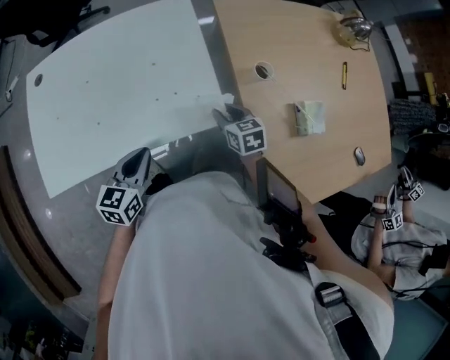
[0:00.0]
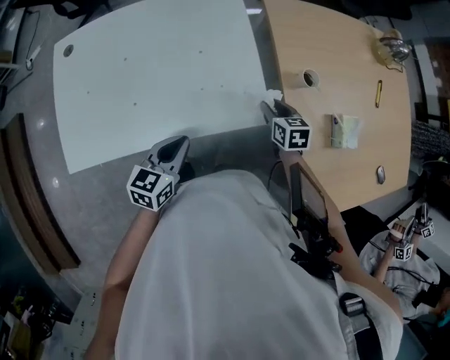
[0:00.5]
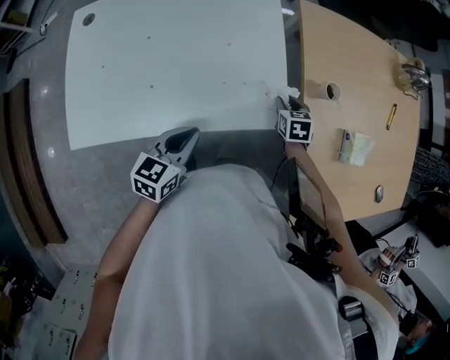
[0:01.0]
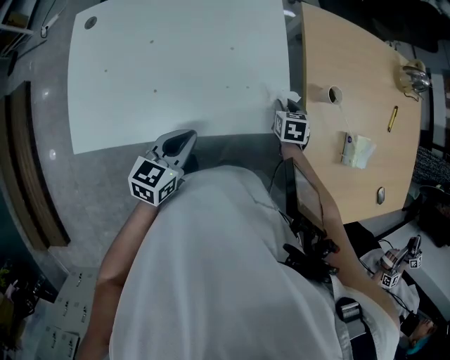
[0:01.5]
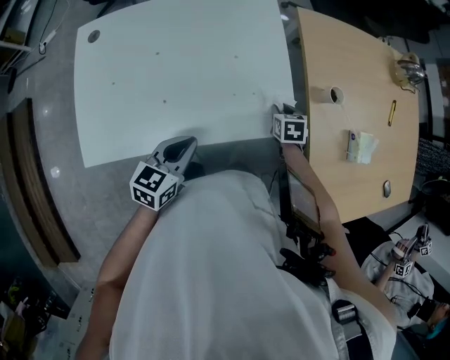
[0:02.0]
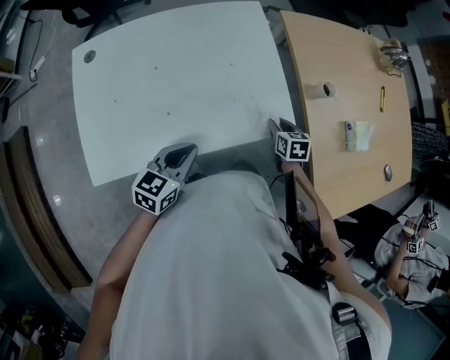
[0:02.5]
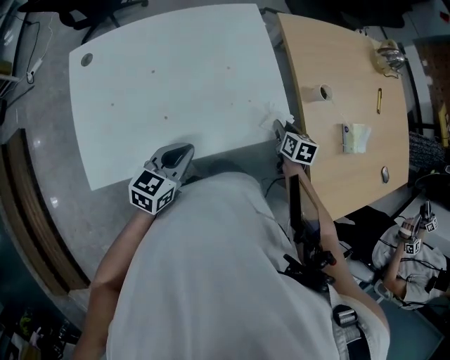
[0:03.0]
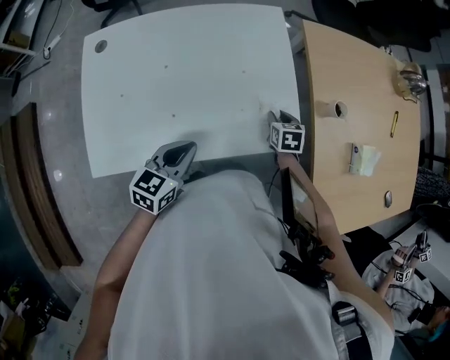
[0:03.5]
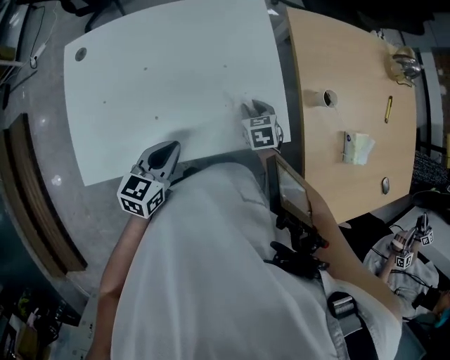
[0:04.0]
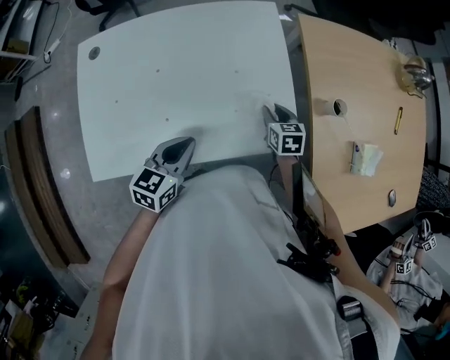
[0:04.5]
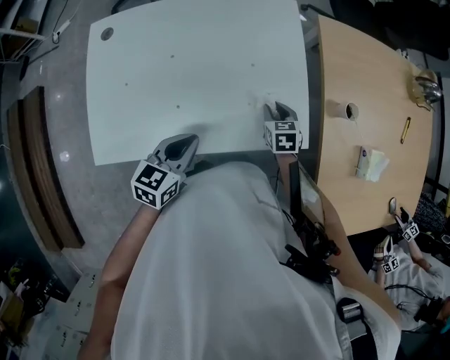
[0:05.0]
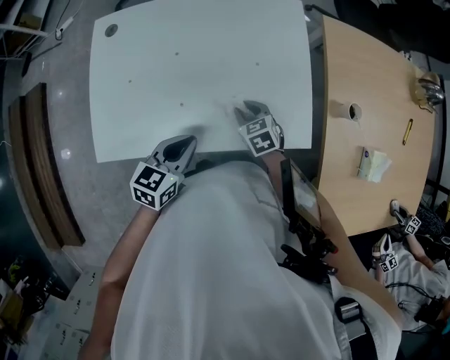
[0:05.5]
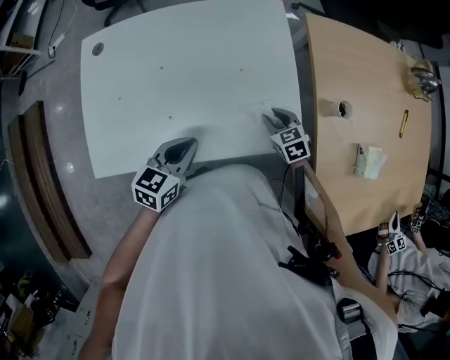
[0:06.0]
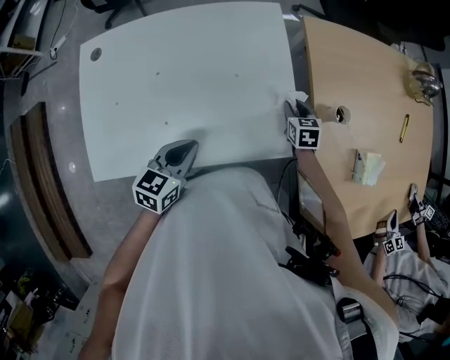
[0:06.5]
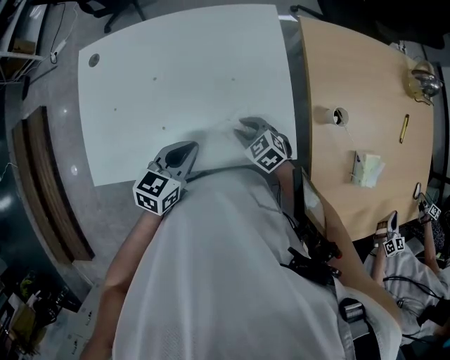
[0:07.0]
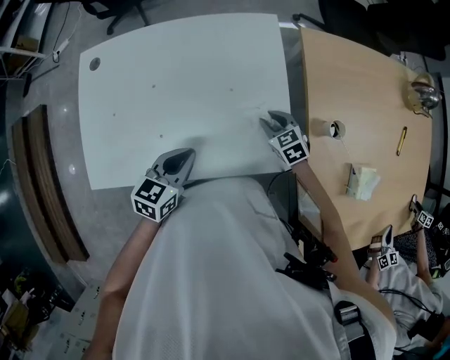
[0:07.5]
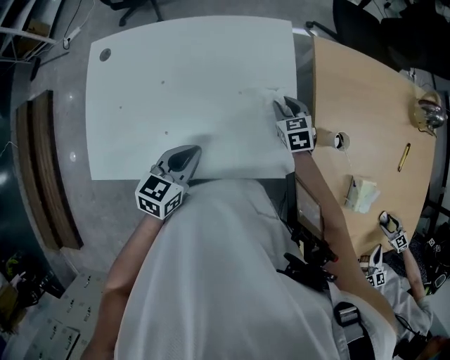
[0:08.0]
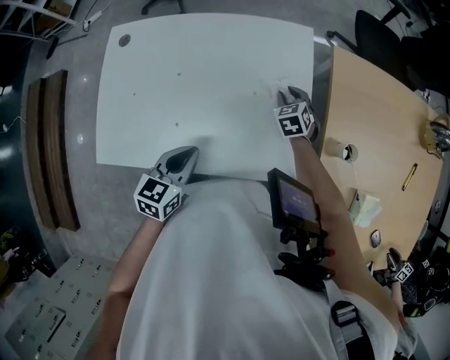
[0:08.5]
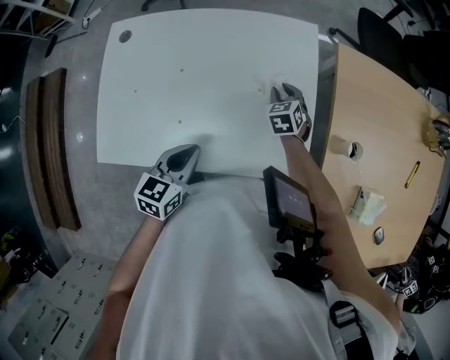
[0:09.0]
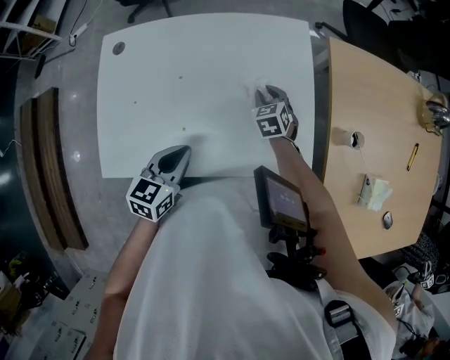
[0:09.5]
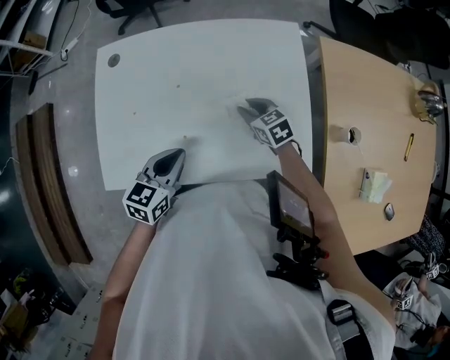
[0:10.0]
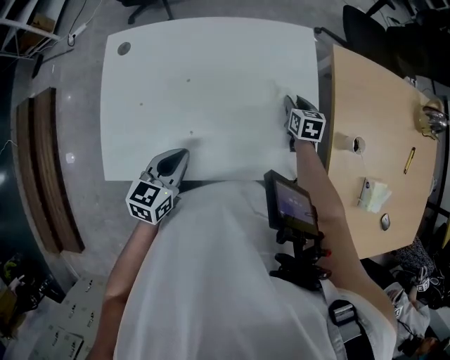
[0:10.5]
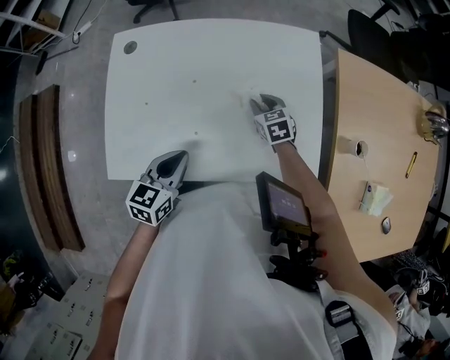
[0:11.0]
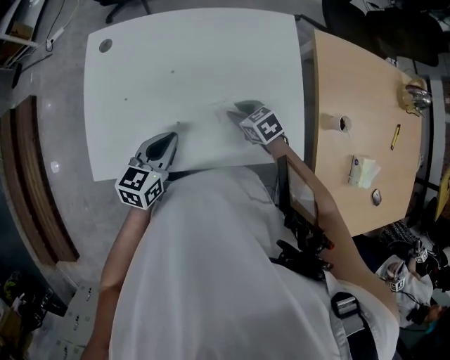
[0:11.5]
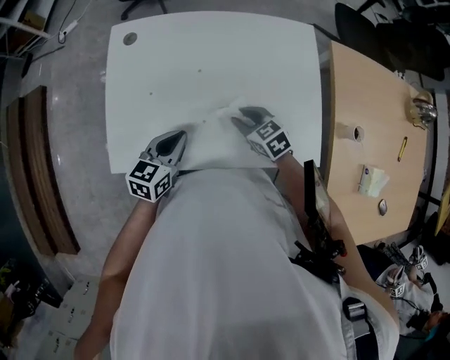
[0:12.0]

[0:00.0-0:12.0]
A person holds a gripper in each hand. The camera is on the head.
0:00.0 to 0:02.0: The left gripper heads to the left, covering roughly 5 cm. The right gripper heads downward, covering some 5 cm, and turns by about 20 degrees.
0:02.0 to 0:04.0: The right gripper moves to the left, about 10 cm.
0:04.0 to 0:06.0: The right gripper moves left and right over some 15 cm, changing direction 2 times.
0:06.0 to 0:08.0: The right gripper swings left and right, approximately 15 cm each way, with 2 reversals; the left gripper ends up roughly 5 cm from where it was.
0:08.0 to 0:10.0: The right gripper shifts about 15 cm to the left, and turns by approximately 20 degrees. Meanwhile the left gripper moves to the left, roughly 10 cm.
0:10.0 to 0:12.0: The right gripper moves to the left and backward, roughly 10 cm. Meanwhile the left gripper is displaced to the left by approximately 5 cm.

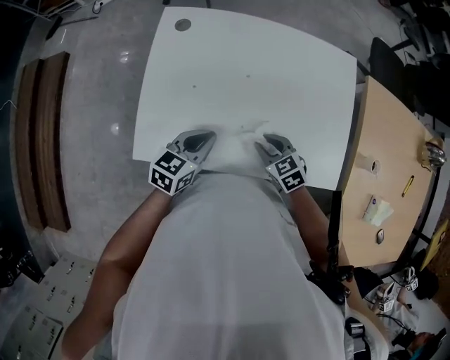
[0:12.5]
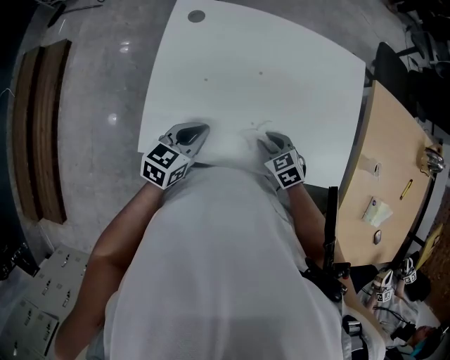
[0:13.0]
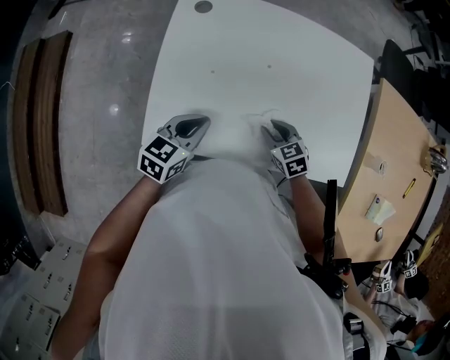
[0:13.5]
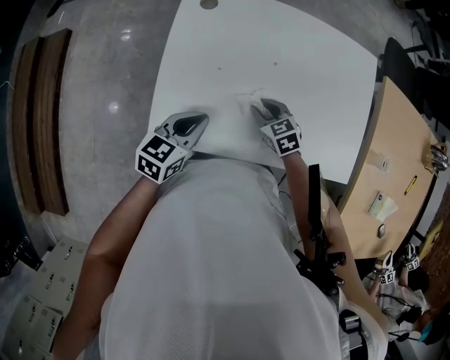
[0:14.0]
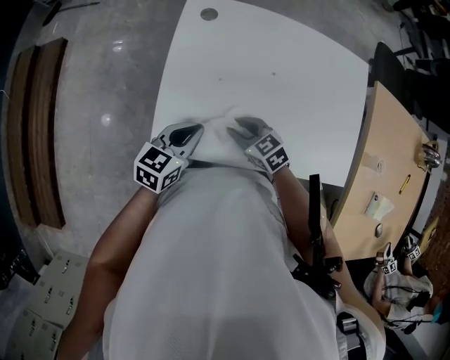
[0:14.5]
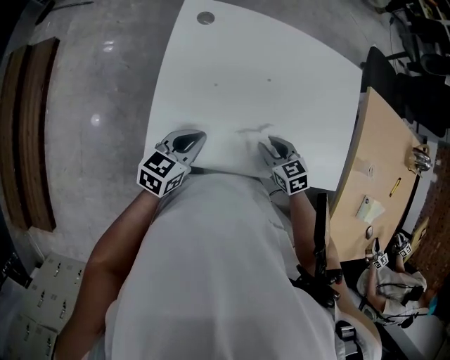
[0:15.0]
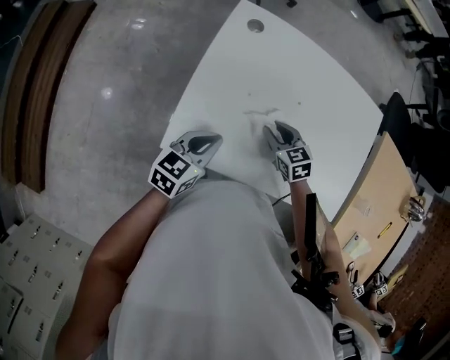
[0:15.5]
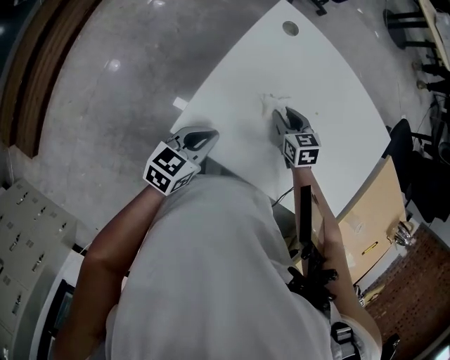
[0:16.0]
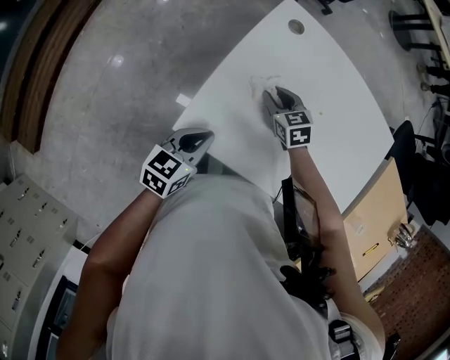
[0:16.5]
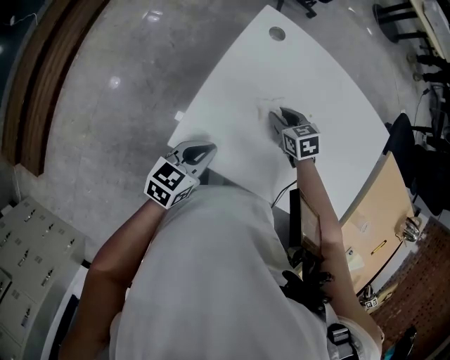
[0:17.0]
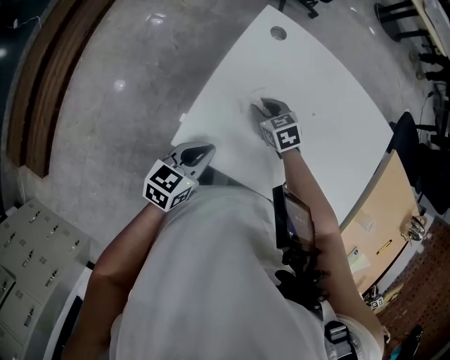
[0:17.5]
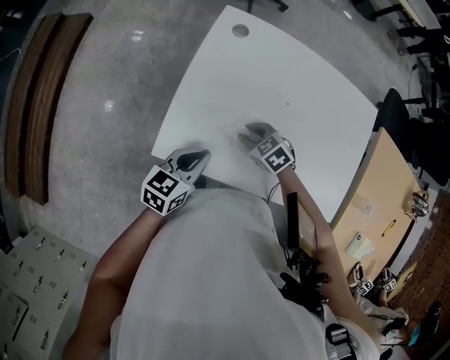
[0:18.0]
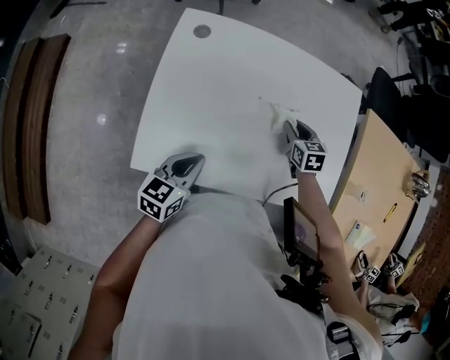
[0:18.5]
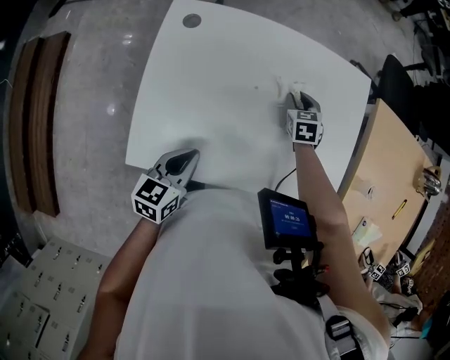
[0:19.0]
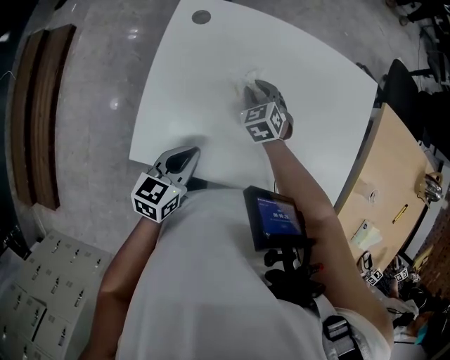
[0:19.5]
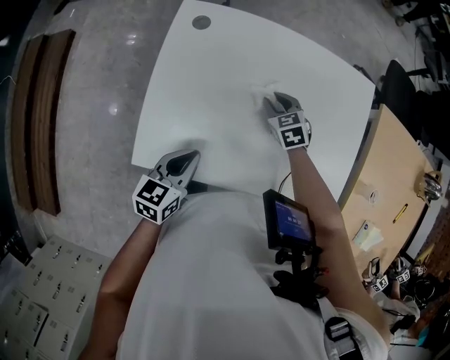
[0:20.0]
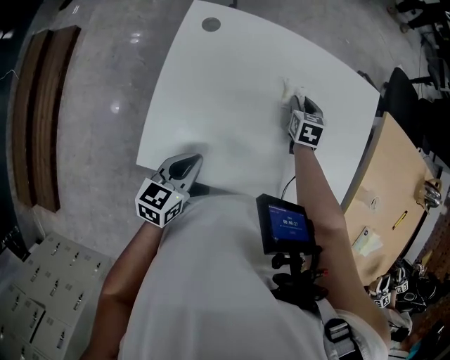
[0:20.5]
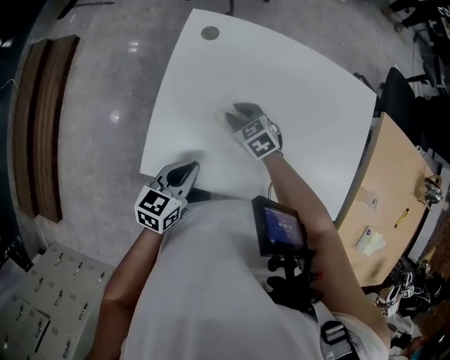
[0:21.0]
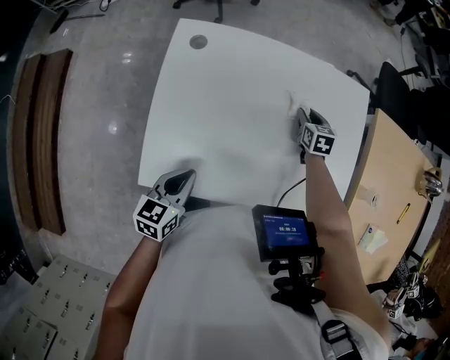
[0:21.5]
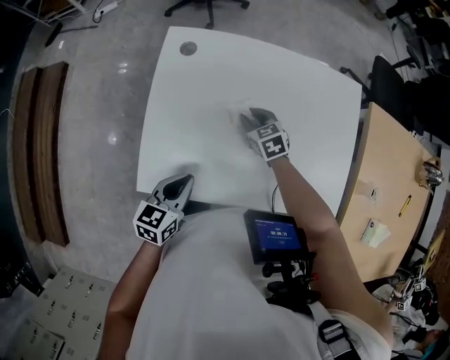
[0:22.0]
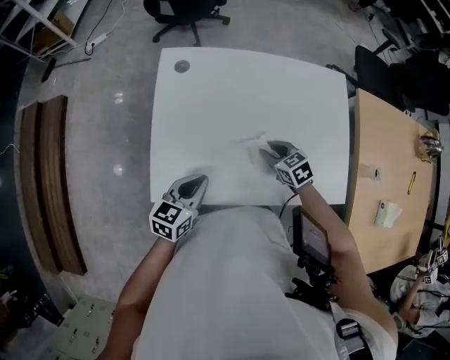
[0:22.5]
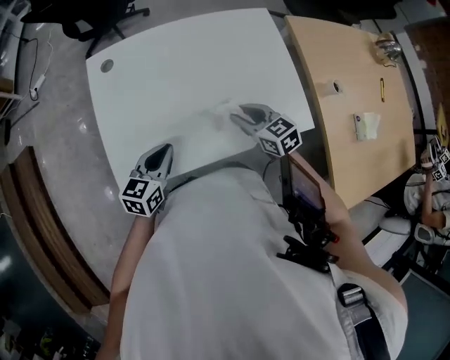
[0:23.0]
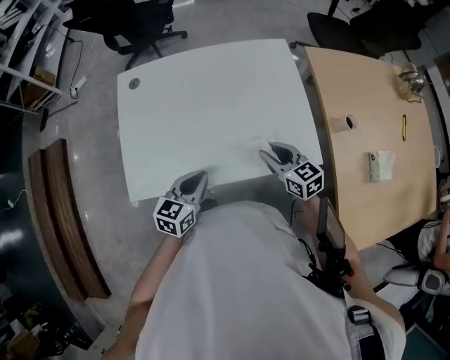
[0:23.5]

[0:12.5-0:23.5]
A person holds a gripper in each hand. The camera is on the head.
0:12.5 to 0:14.5: The left gripper goes some 10 cm to the left; the right gripper heads to the left, covering about 15 cm.
0:14.5 to 0:16.0: The left gripper ends up roughly 5 cm from where it was; the right gripper is displaced forward by about 10 cm.
0:16.0 to 0:18.0: The right gripper shifts roughly 5 cm backward, and swivels some 20 degrees.
0:18.0 to 0:20.0: The left gripper ends up approximately 5 cm from where it was, while the right gripper swivels approximately 30 degrees.
0:20.0 to 0:21.5: The right gripper shifts by approximately 15 cm, and swivels approximately 30 degrees.
0:21.5 to 0:23.5: The right gripper travels backward and upward by roughly 30 cm, and swivels approximately 30 degrees. The left gripper goes approximately 15 cm to the right.

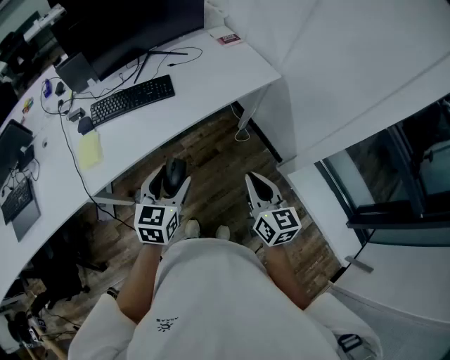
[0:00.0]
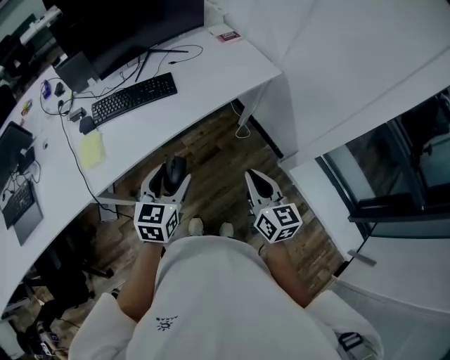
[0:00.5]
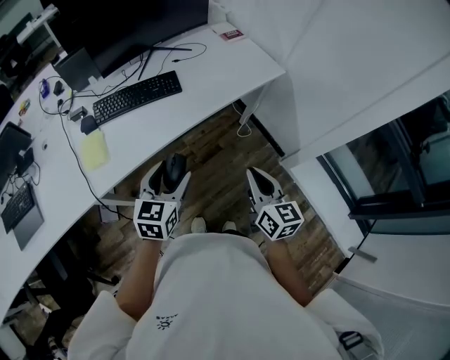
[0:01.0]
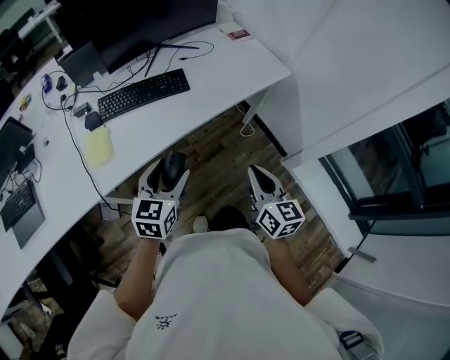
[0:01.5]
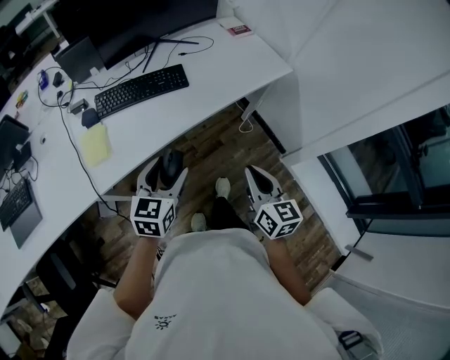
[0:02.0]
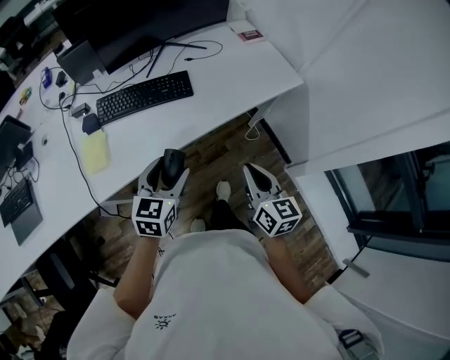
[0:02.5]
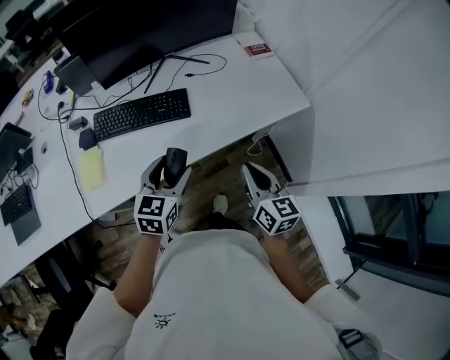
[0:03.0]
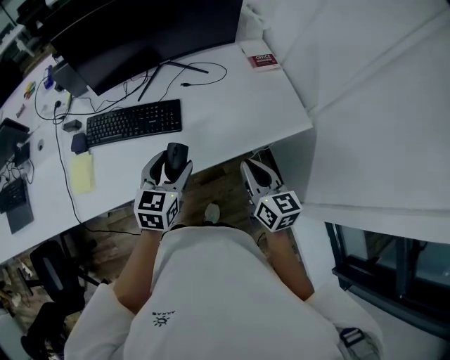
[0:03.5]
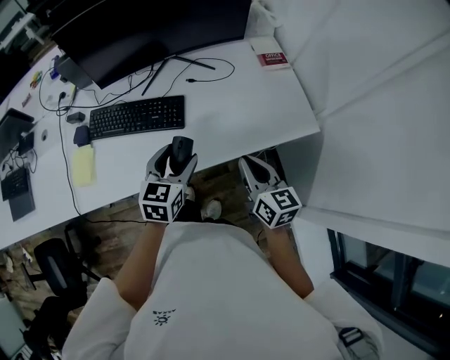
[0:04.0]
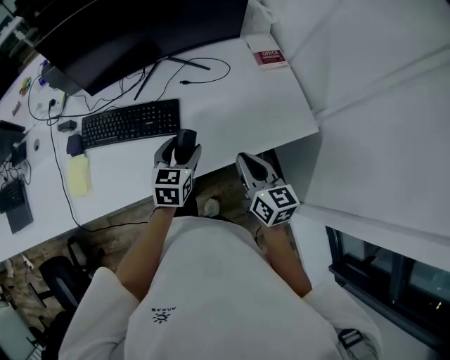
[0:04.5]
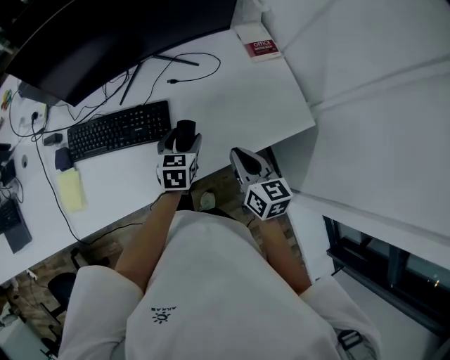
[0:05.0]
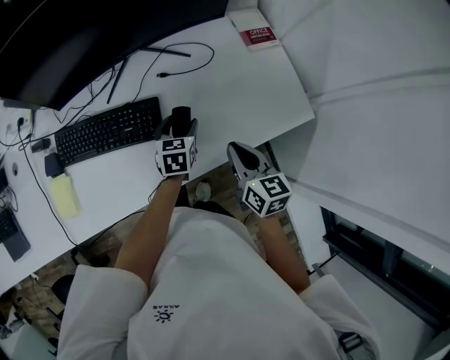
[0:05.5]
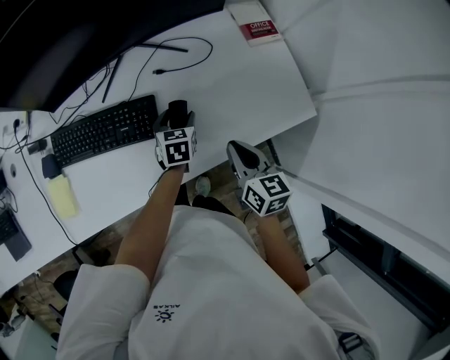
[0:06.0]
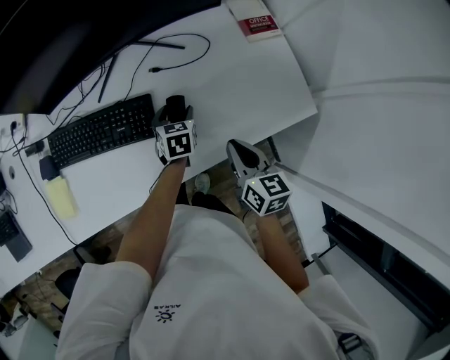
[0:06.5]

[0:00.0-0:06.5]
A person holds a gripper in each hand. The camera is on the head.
0:00.0 to 0:02.0: Both grippers move to the left, approximately 10 cm.
0:02.0 to 0:04.5: The right gripper moves forward, roughly 35 cm, and turns by approximately 20 degrees. Meanwhile the left gripper shifts roughly 35 cm forward and to the right.
0:04.5 to 0:06.5: The right gripper goes about 10 cm downward and forward. The left gripper travels downward and forward by about 20 cm.
